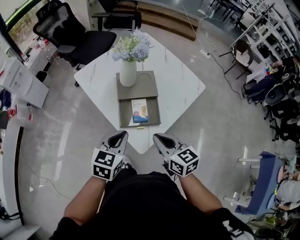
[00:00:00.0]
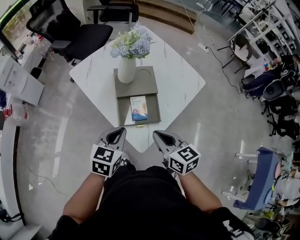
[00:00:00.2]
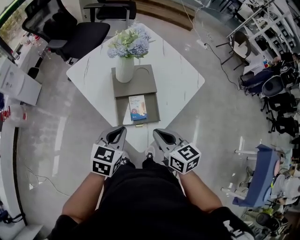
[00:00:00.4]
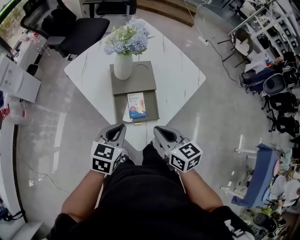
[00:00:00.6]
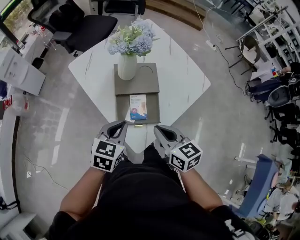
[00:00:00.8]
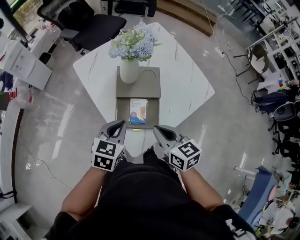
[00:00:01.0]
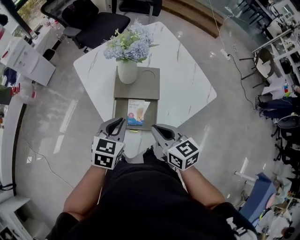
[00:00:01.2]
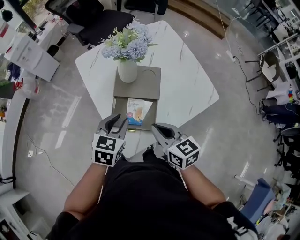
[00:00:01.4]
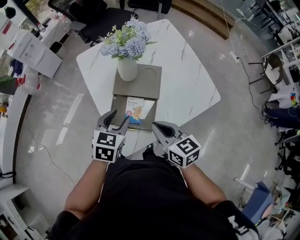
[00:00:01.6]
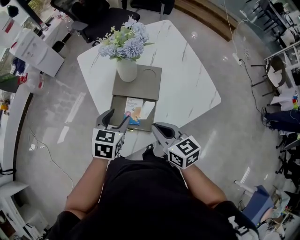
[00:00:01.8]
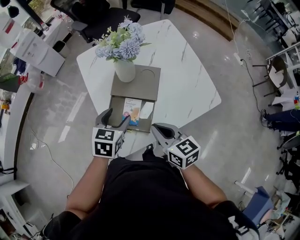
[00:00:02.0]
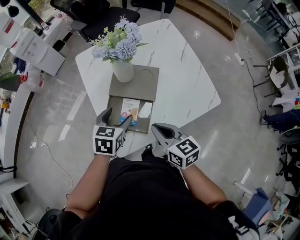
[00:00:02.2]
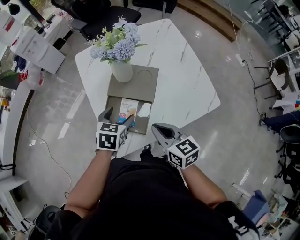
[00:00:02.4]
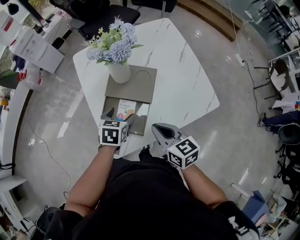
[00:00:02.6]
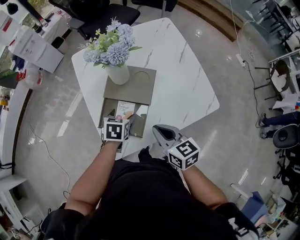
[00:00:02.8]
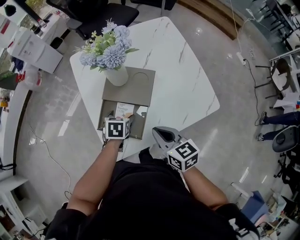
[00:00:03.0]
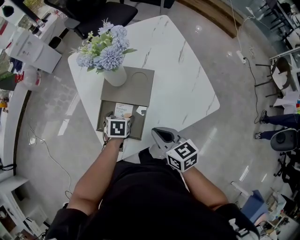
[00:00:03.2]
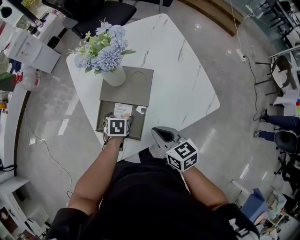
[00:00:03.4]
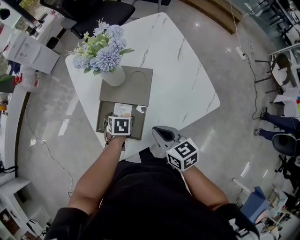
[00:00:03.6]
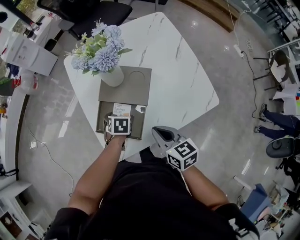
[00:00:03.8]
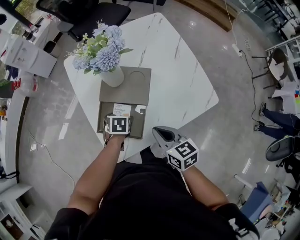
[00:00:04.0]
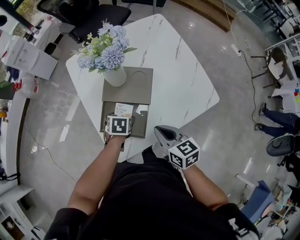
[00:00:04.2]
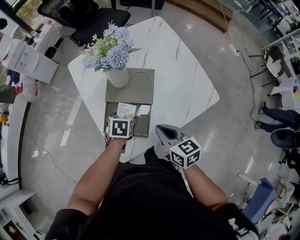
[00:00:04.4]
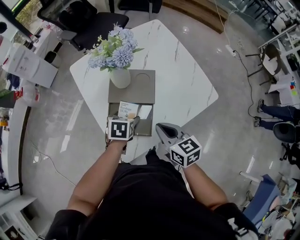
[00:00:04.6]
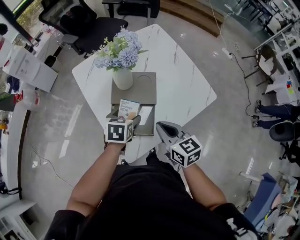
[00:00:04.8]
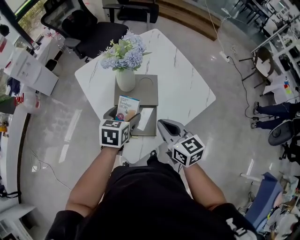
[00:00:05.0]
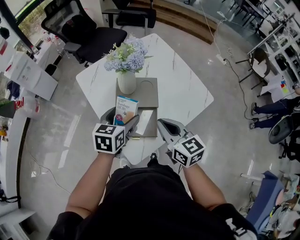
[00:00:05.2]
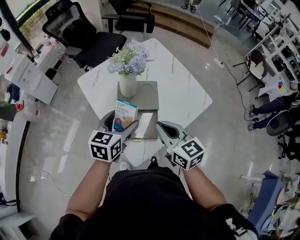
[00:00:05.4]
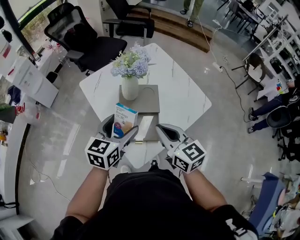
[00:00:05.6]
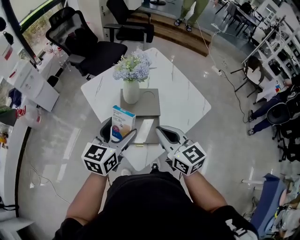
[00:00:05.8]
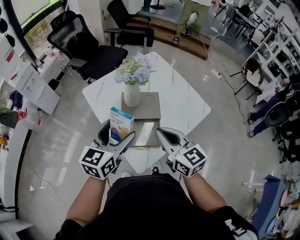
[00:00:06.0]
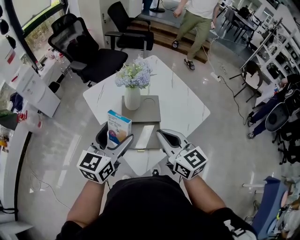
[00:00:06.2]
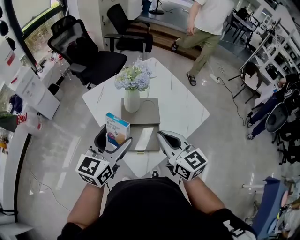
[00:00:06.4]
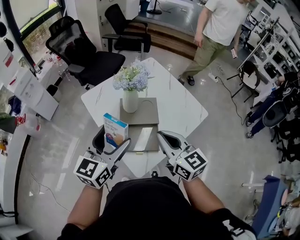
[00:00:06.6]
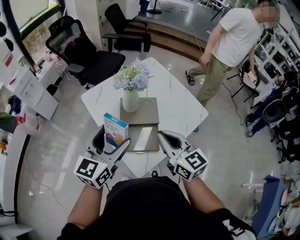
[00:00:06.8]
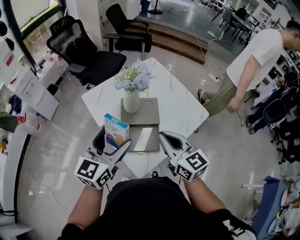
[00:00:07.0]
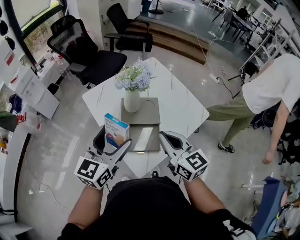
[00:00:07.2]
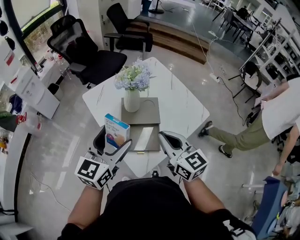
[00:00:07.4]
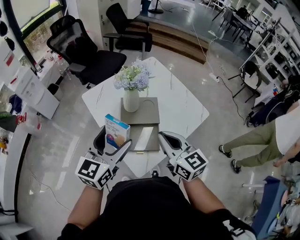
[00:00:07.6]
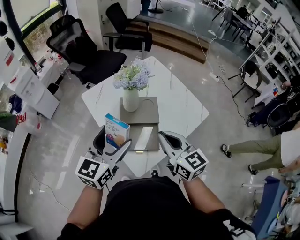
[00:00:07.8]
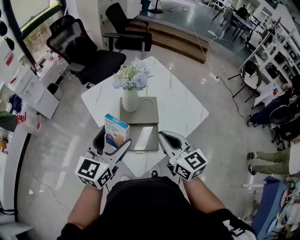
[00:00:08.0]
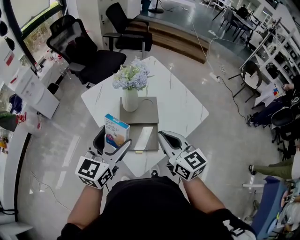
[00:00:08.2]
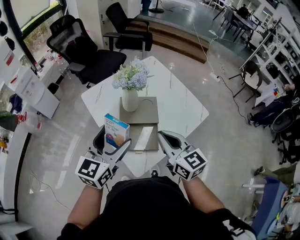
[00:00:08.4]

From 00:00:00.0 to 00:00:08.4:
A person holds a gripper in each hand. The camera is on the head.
From 00:00:00.0 to 00:00:01.4: The two grippers go roughly 15 cm forward and to the right.
From 00:00:01.4 to 00:00:02.8: The right gripper moves to the right, approximately 10 cm. Meanwhile the left gripper heads downward and to the right, covering approximately 15 cm, turns by approximately 30 degrees, and opens up.
From 00:00:02.8 to 00:00:04.2: The left gripper shifts about 5 cm downward.
From 00:00:04.2 to 00:00:05.6: The right gripper is displaced upward and to the left by approximately 20 cm, and turns by approximately 20 degrees; the left gripper moves upward, roughly 25 cm, and points its fingers about 50 degrees further upward.
From 00:00:05.6 to 00:00:07.0: The left gripper travels upward by approximately 10 cm.
From 00:00:07.0 to 00:00:08.4: Both grippers stay put.

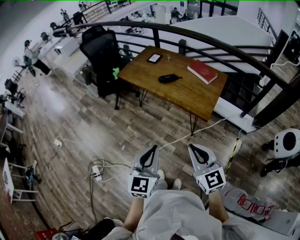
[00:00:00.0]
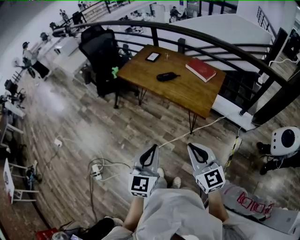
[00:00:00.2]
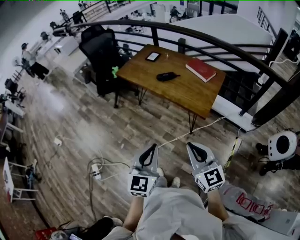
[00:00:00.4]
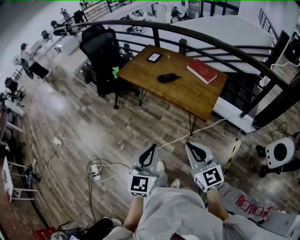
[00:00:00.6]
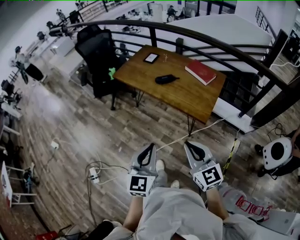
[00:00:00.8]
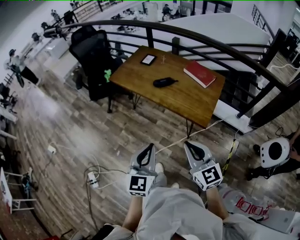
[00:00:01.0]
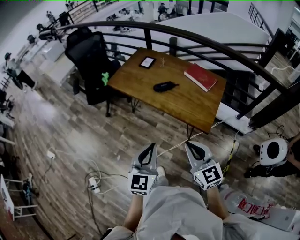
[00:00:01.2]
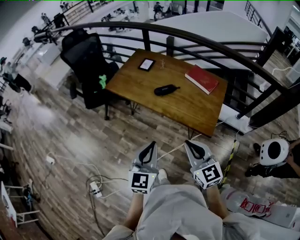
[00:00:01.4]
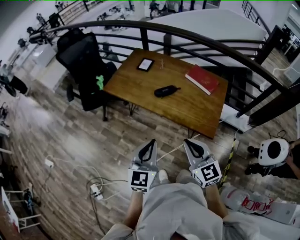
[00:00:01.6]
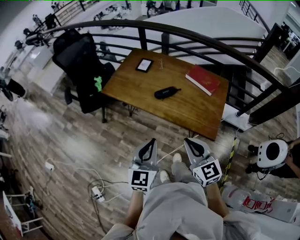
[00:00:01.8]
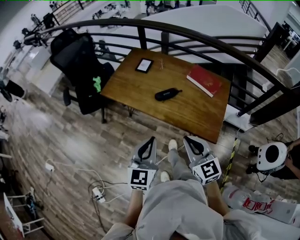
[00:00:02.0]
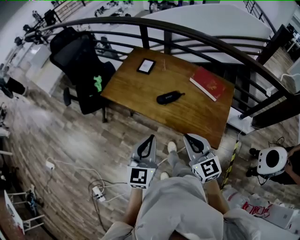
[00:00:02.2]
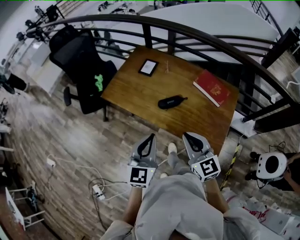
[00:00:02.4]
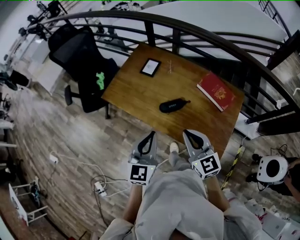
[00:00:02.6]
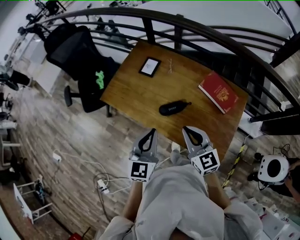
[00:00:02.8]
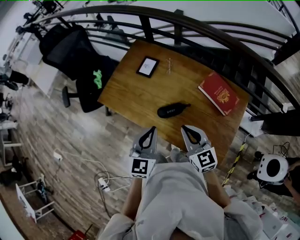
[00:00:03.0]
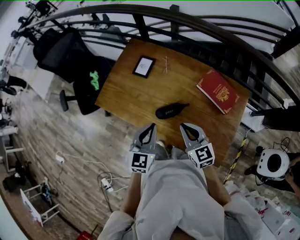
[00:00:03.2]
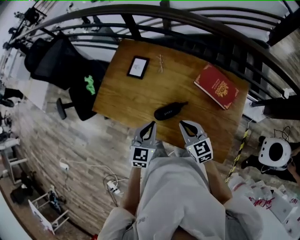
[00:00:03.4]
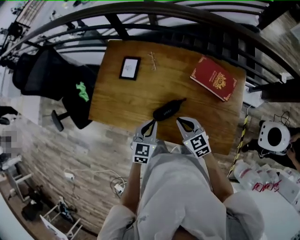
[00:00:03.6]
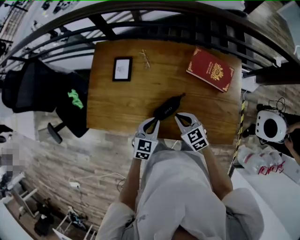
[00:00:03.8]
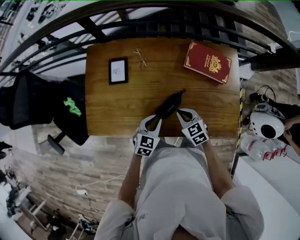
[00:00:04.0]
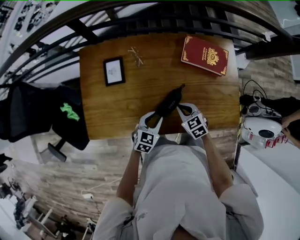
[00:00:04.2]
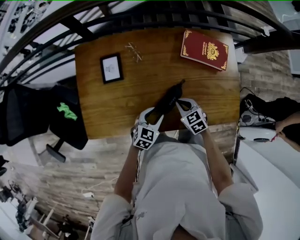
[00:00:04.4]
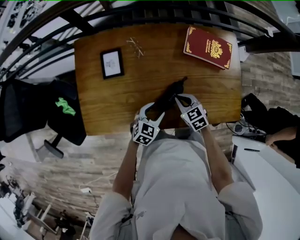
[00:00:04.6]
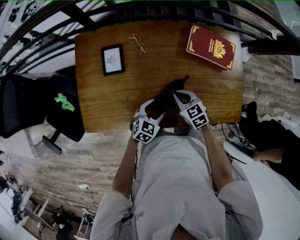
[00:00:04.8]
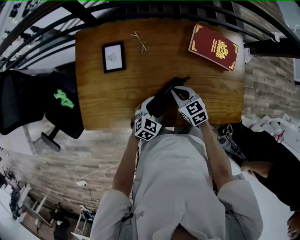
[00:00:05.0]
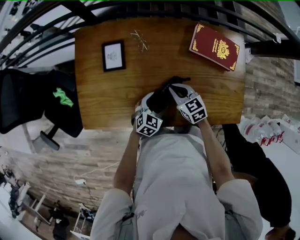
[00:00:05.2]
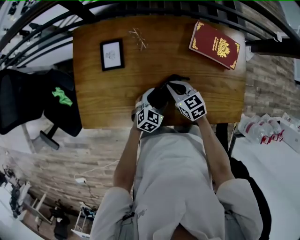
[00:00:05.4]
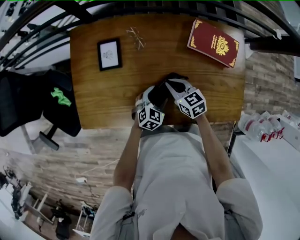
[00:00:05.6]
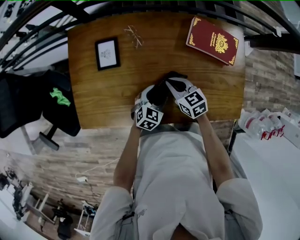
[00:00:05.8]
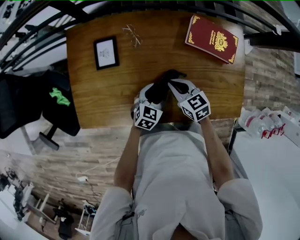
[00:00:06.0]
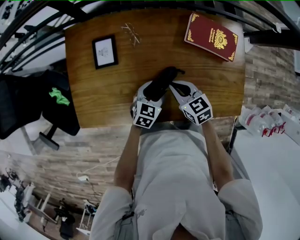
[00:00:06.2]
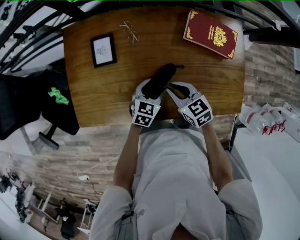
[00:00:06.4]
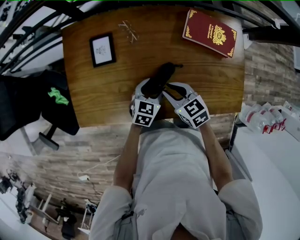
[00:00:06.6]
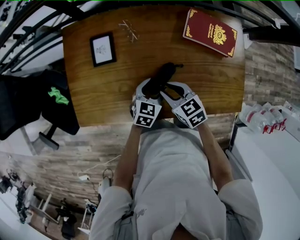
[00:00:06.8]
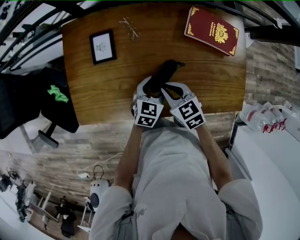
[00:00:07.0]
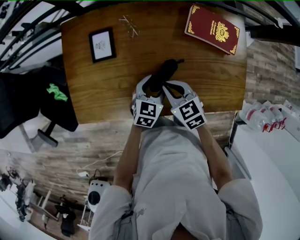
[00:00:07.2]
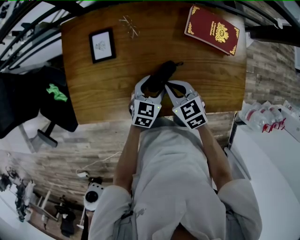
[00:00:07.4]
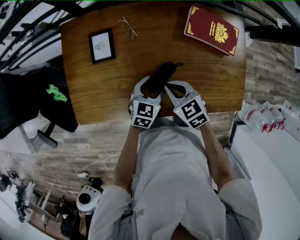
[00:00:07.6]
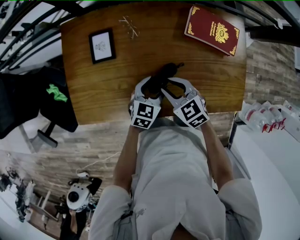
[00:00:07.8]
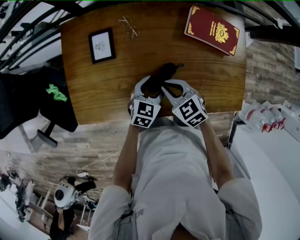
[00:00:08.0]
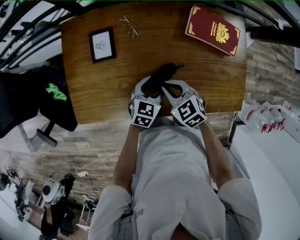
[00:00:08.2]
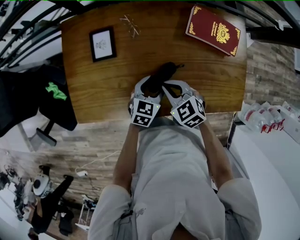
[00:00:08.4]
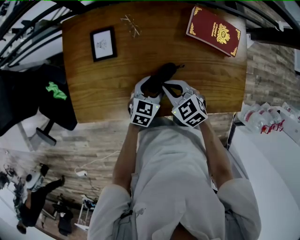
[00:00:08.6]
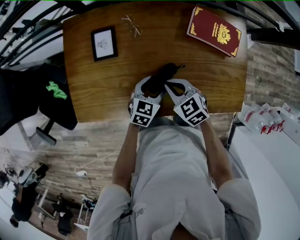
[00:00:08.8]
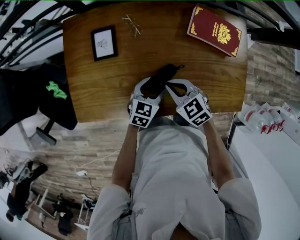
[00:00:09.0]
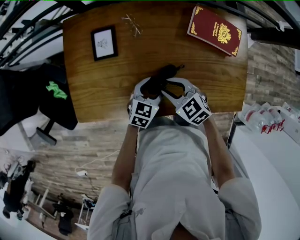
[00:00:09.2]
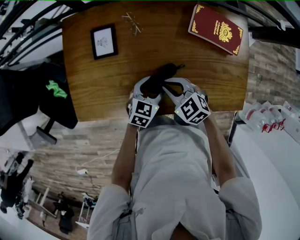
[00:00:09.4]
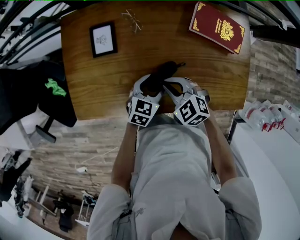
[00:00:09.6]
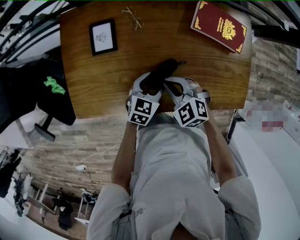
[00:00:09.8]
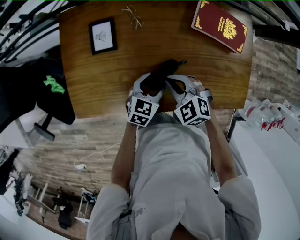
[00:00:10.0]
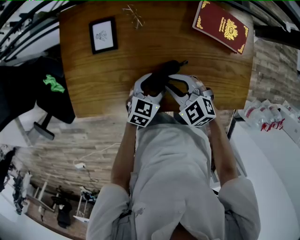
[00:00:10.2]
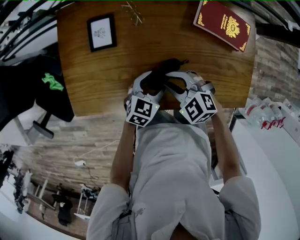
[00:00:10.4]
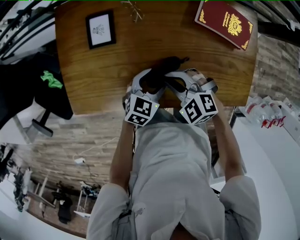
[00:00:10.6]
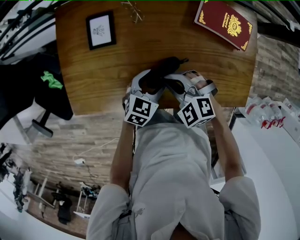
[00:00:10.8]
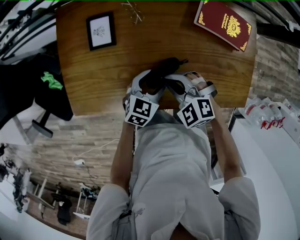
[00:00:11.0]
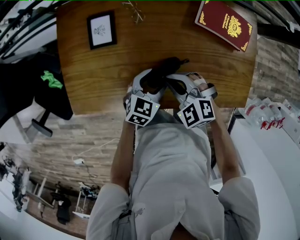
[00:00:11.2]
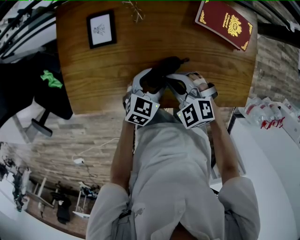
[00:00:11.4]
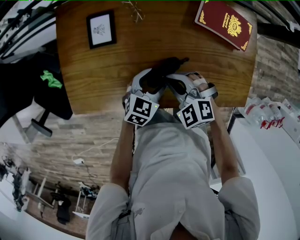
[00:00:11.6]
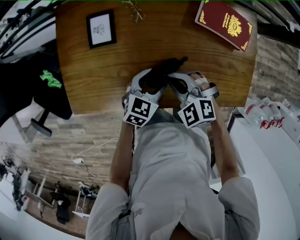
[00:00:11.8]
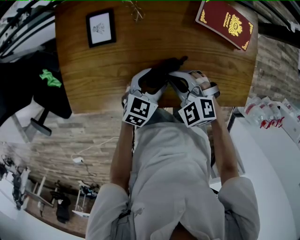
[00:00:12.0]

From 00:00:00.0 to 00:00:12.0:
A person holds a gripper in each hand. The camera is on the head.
From 00:00:00.0 to 00:00:01.6: Both grippers travel together forward, some 25 cm.
From 00:00:01.6 to 00:00:03.0: The two grippers go some 30 cm forward.
From 00:00:03.0 to 00:00:04.4: The two grippers go roughly 25 cm downward. The left gripper changes its angle by roughly 60 degrees, and opens up, while the right gripper tilts its fingers some 30 degrees downward.
From 00:00:04.4 to 00:00:06.0: The left gripper travels forward by about 5 cm, while the right gripper shifts by roughly 5 cm.
From 00:00:06.0 to 00:00:07.6: The right gripper opens, then closes once more.
From 00:00:07.6 to 00:00:09.0: The right gripper opens, then closes once more.
From 00:00:09.0 to 00:00:10.4: The right gripper changes its angle by approximately 20 degrees, and opens its fingers.
From 00:00:10.4 to 00:00:12.0: The right gripper closes.

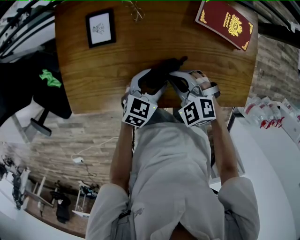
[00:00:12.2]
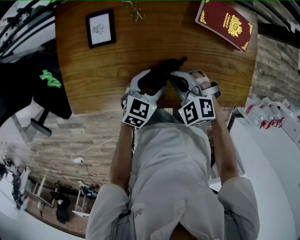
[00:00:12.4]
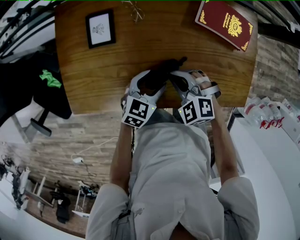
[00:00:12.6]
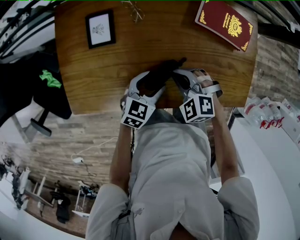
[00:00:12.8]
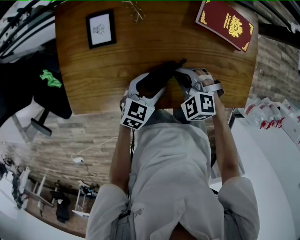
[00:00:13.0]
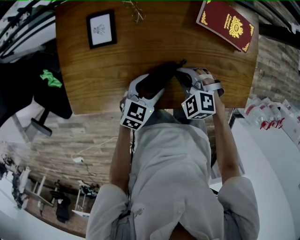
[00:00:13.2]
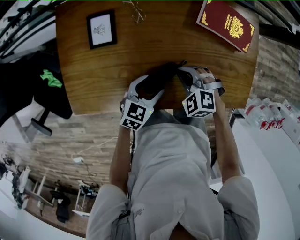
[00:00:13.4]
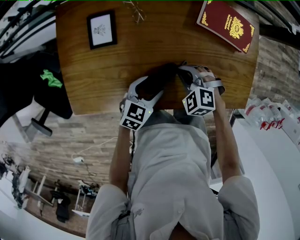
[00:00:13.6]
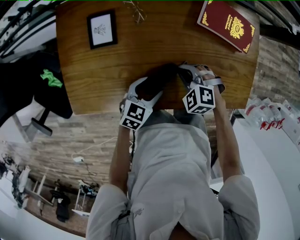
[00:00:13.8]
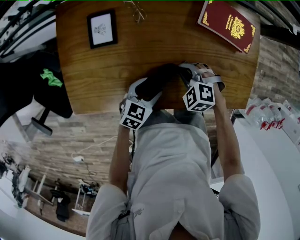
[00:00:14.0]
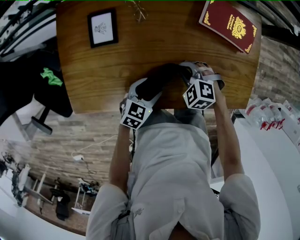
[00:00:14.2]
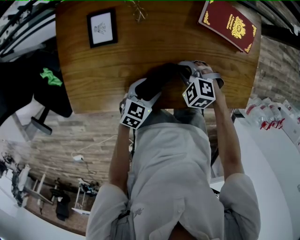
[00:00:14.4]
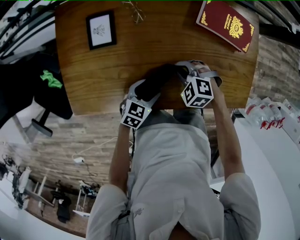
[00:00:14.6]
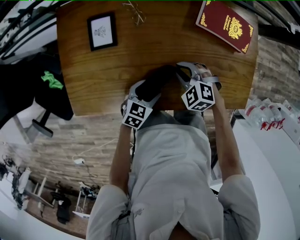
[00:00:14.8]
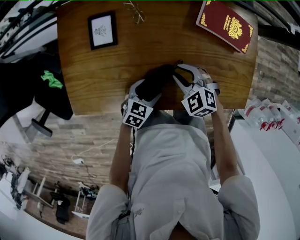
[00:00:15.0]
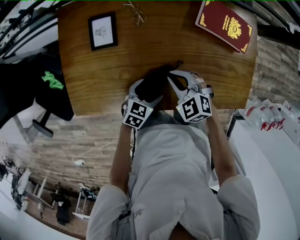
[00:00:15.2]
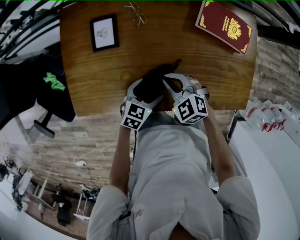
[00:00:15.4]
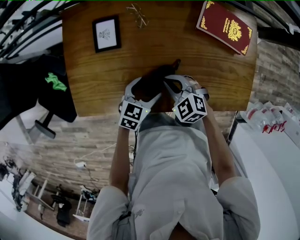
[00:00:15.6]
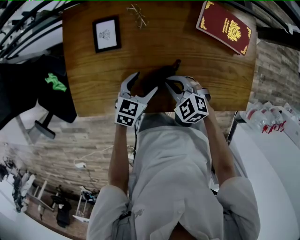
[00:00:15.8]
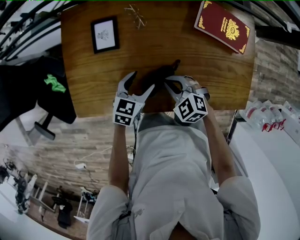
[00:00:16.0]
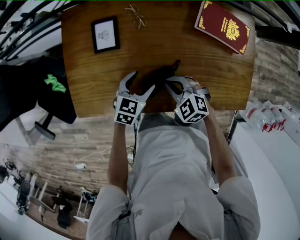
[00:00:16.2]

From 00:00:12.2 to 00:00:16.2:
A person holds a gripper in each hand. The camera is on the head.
From 00:00:12.2 to 00:00:13.6: The right gripper travels downward by approximately 5 cm.
From 00:00:13.6 to 00:00:14.8: The grippers stay close to where they were, moving slightly.
From 00:00:14.8 to 00:00:16.2: The left gripper is displaced forward by about 5 cm, while the right gripper moves roughly 5 cm.
